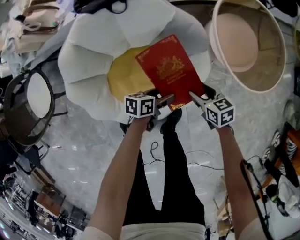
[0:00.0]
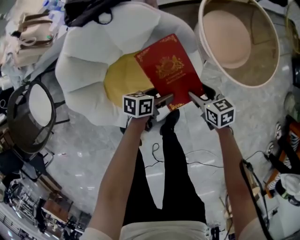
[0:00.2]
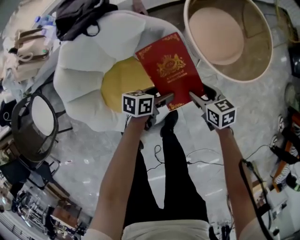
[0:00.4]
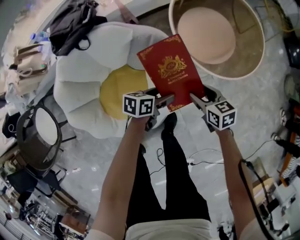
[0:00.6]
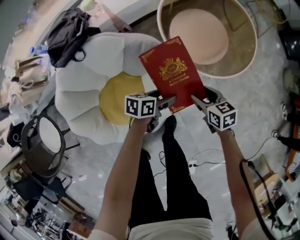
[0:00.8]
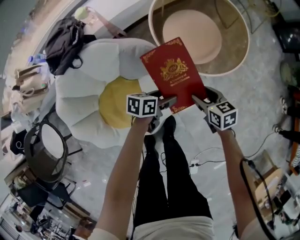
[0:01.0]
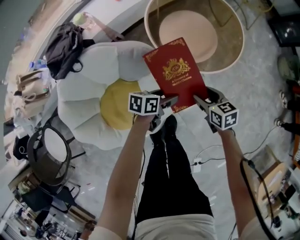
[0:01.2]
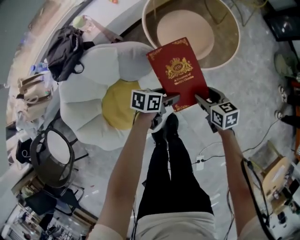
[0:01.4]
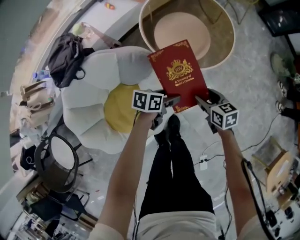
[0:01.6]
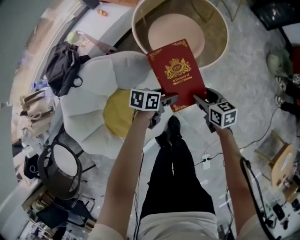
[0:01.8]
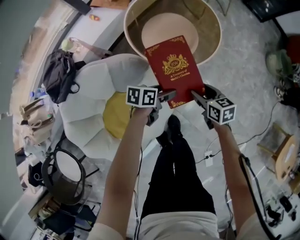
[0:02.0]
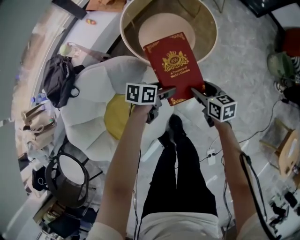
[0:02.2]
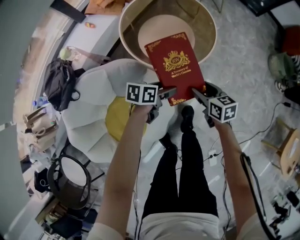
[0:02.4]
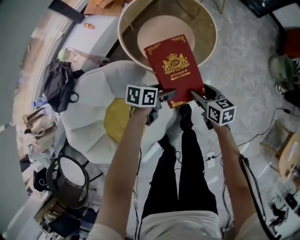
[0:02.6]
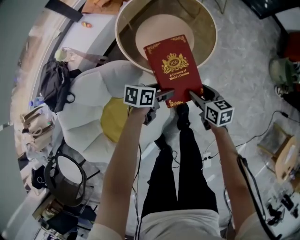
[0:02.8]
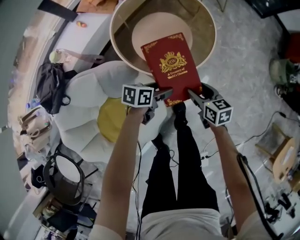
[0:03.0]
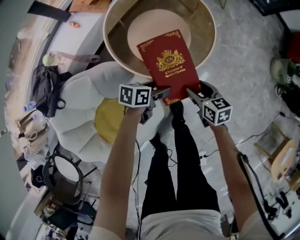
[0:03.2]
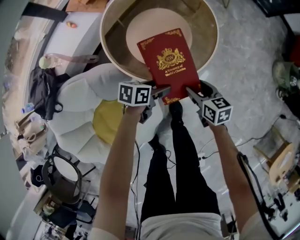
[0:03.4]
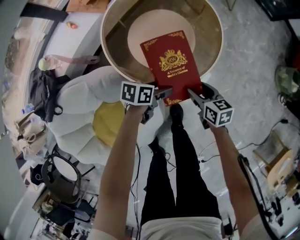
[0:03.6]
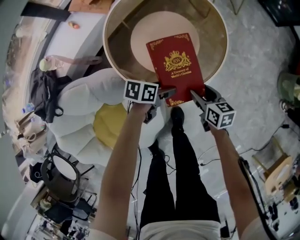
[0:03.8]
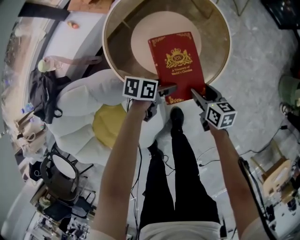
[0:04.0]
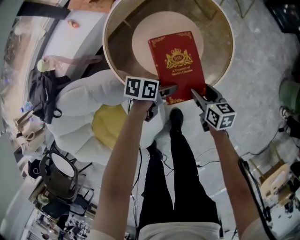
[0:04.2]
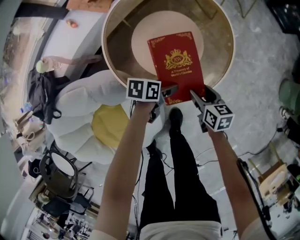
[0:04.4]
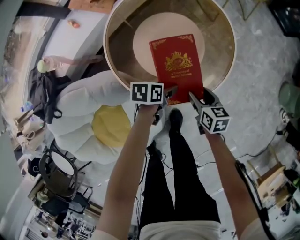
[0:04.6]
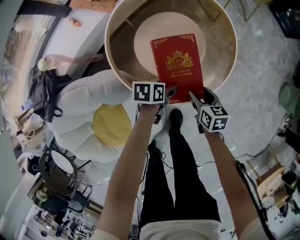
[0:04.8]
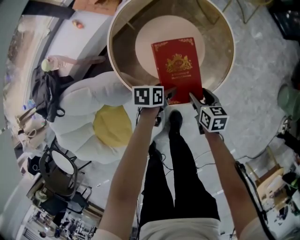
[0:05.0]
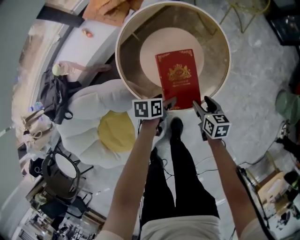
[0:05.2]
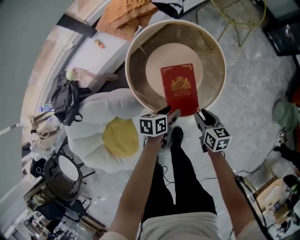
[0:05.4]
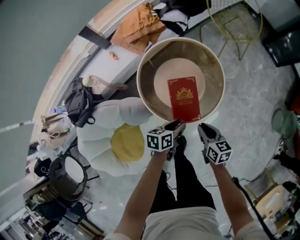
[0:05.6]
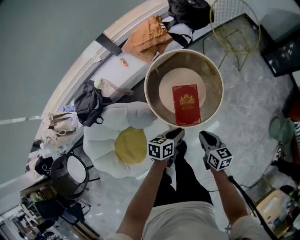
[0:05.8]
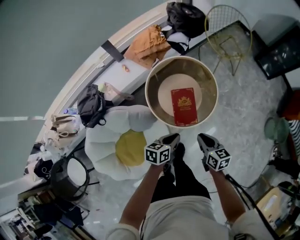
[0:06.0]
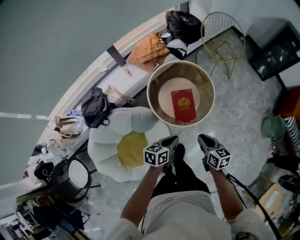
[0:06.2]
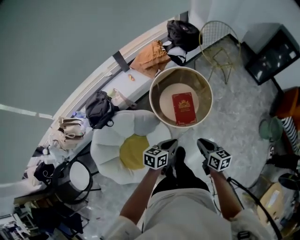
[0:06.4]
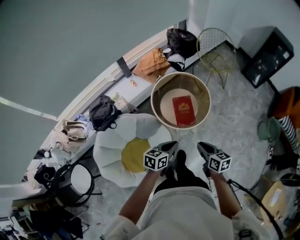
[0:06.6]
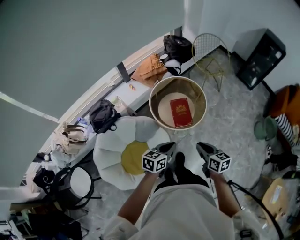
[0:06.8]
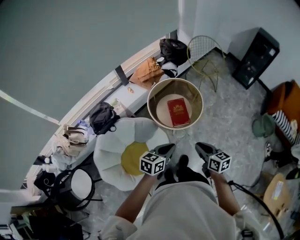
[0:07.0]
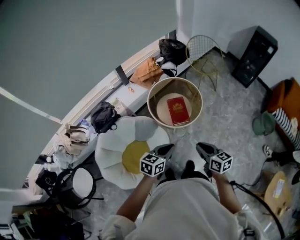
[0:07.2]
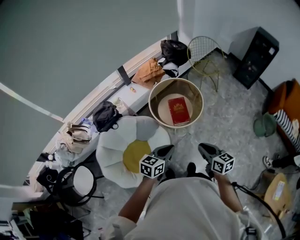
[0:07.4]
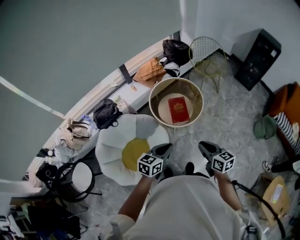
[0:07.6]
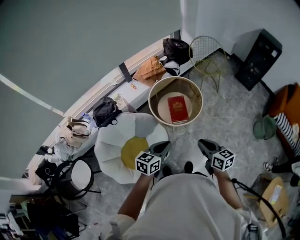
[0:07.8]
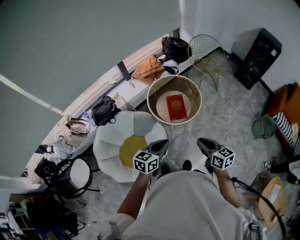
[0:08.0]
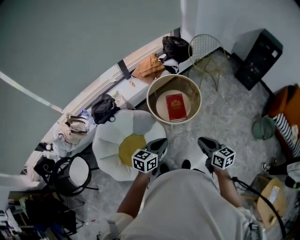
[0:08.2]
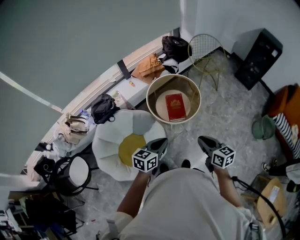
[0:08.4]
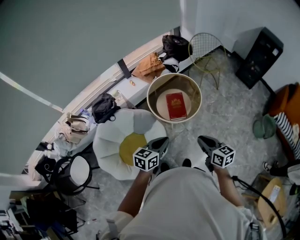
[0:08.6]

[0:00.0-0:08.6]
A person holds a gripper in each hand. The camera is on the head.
0:00.0 to 0:01.4: The right gripper changes place by some 25 cm, and rotates some 30 degrees; the left gripper moves about 25 cm, and swivels roughly 30 degrees.
0:01.4 to 0:02.8: The left gripper travels forward by approximately 10 cm; the right gripper heads forward, covering some 5 cm.
0:02.8 to 0:04.4: Both grippers travel together forward and downward, roughly 20 cm.
0:04.4 to 0:05.8: Both grippers travel together upward, some 30 cm. The left gripper swivels roughly 20 degrees, and closes its fingers; the right gripper closes up.
0:05.8 to 0:07.2: The right gripper is displaced backward and upward by approximately 35 cm, while the left gripper heads upward and backward, covering some 35 cm, and turns by some 30 degrees.
0:07.2 to 0:08.6: The right gripper travels to the right by roughly 5 cm.

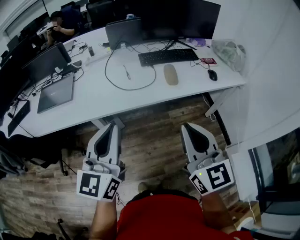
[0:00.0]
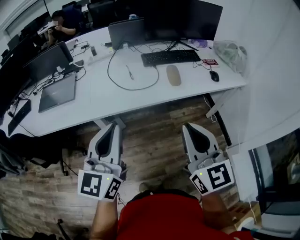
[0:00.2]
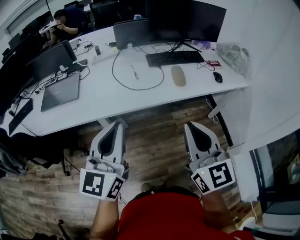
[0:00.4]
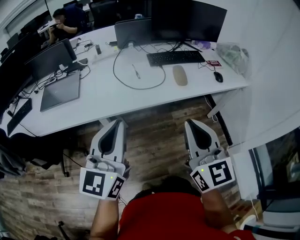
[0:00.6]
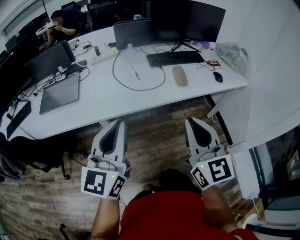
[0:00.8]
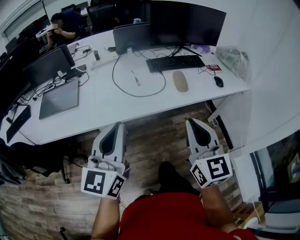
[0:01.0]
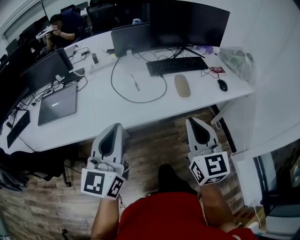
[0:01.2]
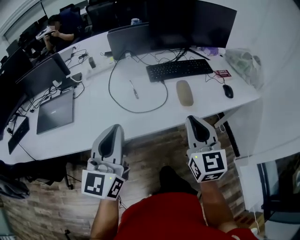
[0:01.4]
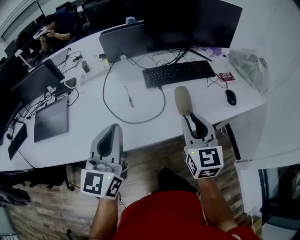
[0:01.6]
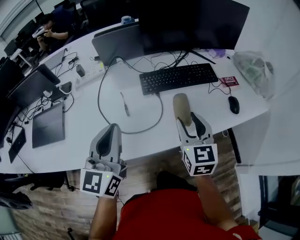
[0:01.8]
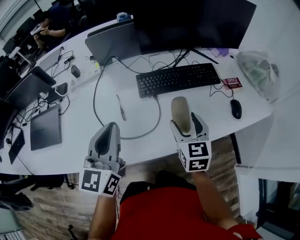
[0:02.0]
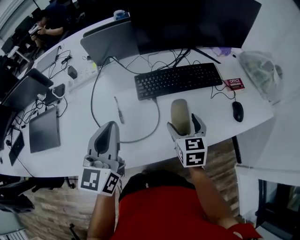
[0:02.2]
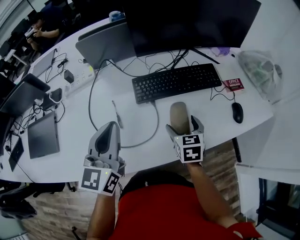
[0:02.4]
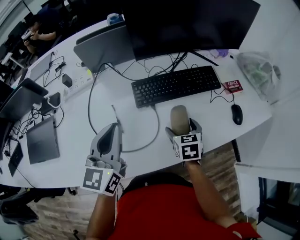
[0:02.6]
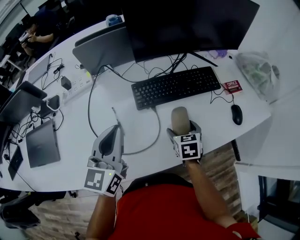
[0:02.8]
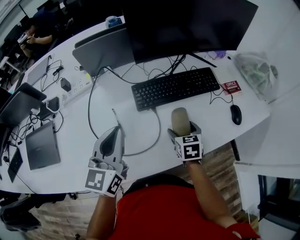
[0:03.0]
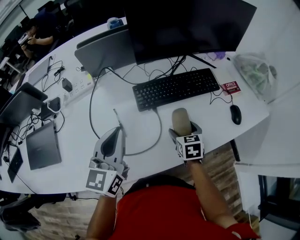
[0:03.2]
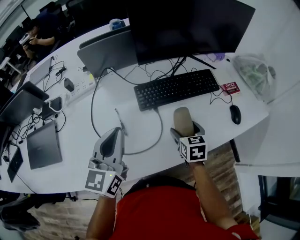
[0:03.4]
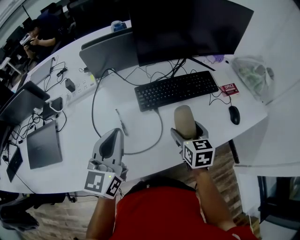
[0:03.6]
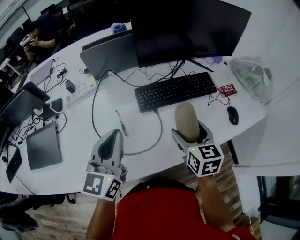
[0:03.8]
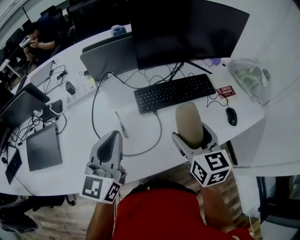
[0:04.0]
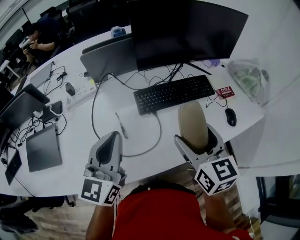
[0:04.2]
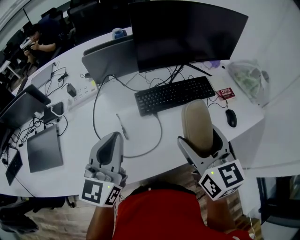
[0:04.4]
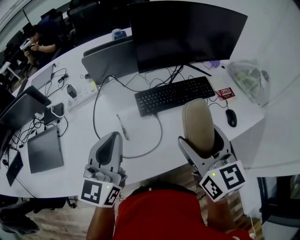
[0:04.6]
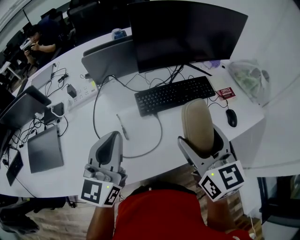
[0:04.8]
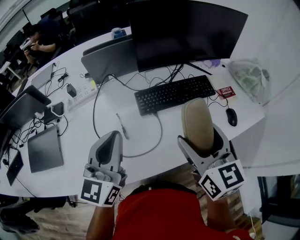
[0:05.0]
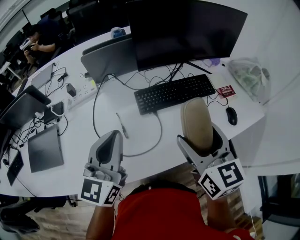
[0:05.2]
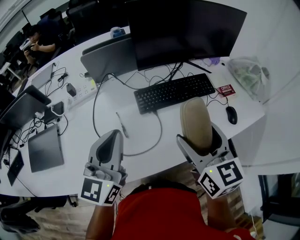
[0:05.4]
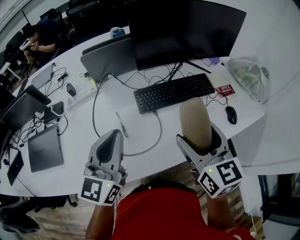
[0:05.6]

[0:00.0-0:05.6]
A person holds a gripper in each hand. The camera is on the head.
0:00.0 to 0:01.4: The grippers both shift forward by some 20 cm.
0:01.4 to 0:02.8: The right gripper goes approximately 35 cm forward and downward, points its fingers some 40 degrees further downward, and opens. The left gripper shifts some 30 cm forward.
0:02.8 to 0:04.2: The right gripper travels upward by approximately 25 cm, and angles its fingers upward, by roughly 30 degrees; the left gripper moves upward, some 5 cm.
0:04.2 to 0:05.6: The grippers stay close to where they were, moving slightly.

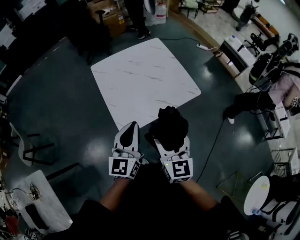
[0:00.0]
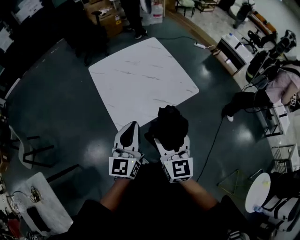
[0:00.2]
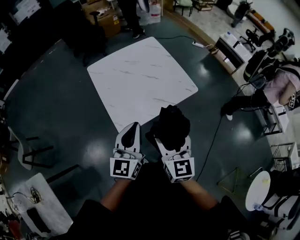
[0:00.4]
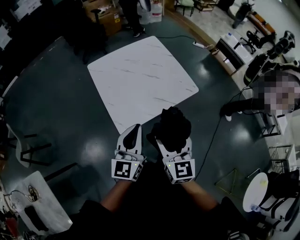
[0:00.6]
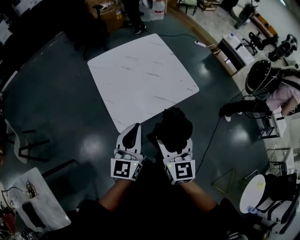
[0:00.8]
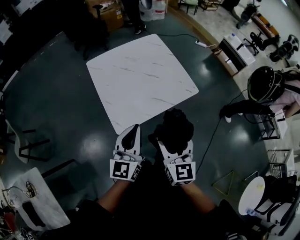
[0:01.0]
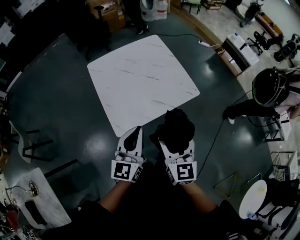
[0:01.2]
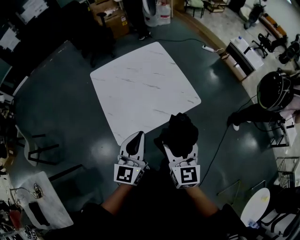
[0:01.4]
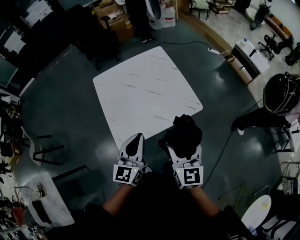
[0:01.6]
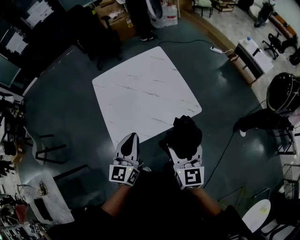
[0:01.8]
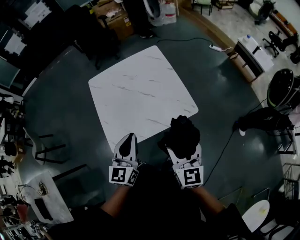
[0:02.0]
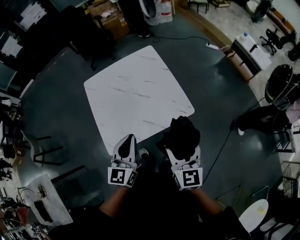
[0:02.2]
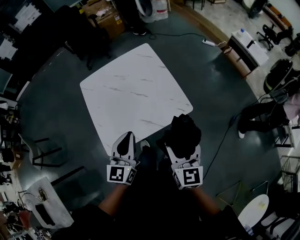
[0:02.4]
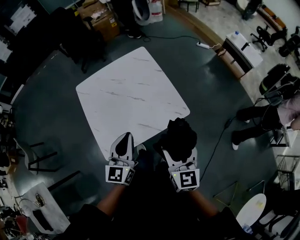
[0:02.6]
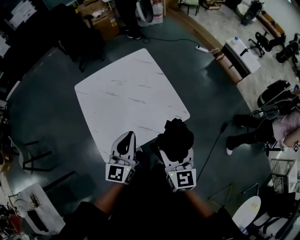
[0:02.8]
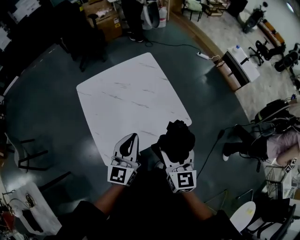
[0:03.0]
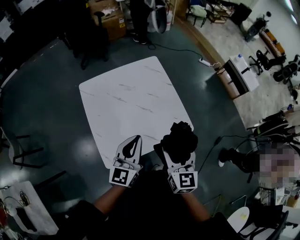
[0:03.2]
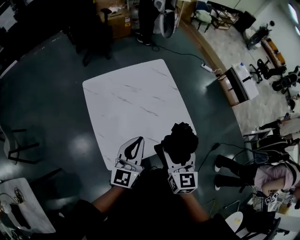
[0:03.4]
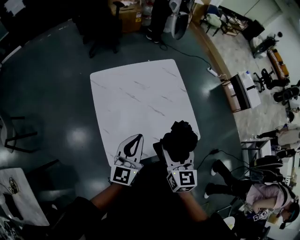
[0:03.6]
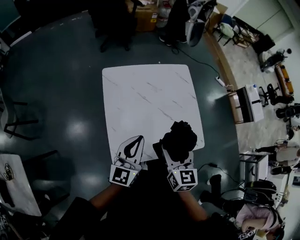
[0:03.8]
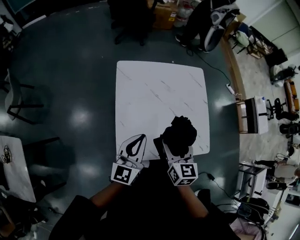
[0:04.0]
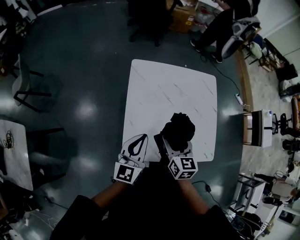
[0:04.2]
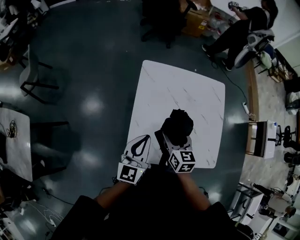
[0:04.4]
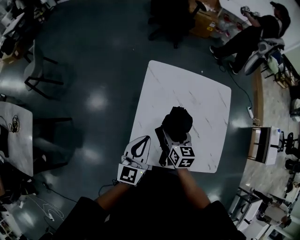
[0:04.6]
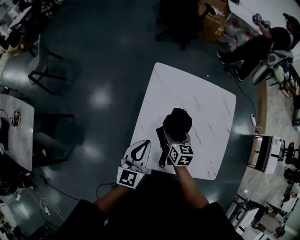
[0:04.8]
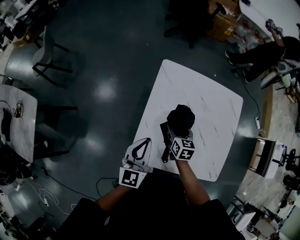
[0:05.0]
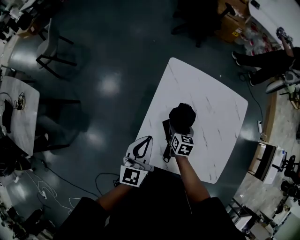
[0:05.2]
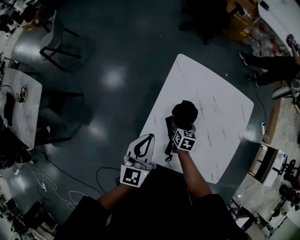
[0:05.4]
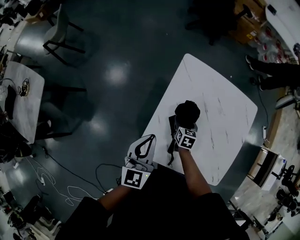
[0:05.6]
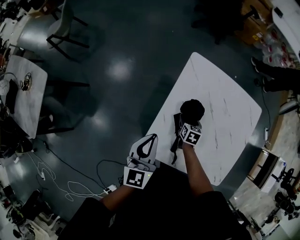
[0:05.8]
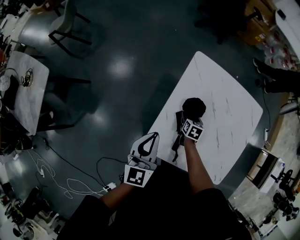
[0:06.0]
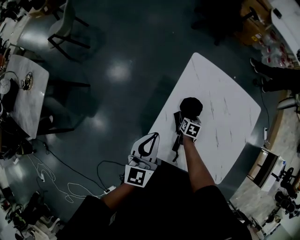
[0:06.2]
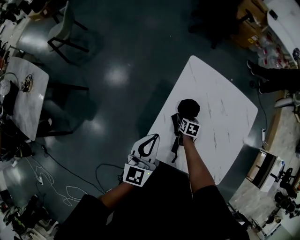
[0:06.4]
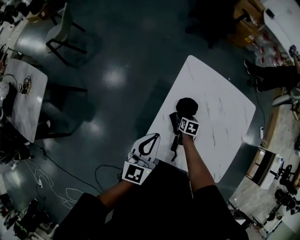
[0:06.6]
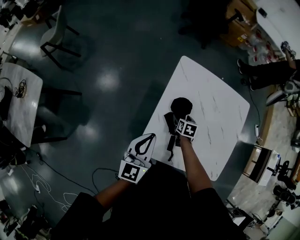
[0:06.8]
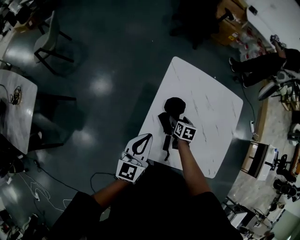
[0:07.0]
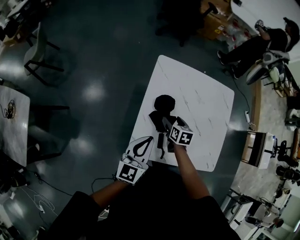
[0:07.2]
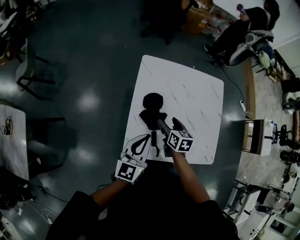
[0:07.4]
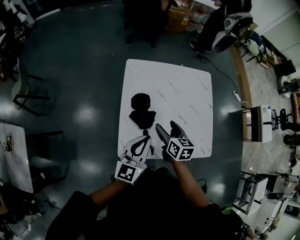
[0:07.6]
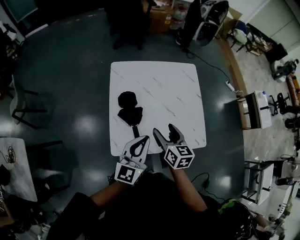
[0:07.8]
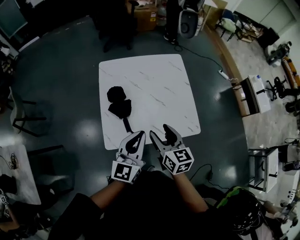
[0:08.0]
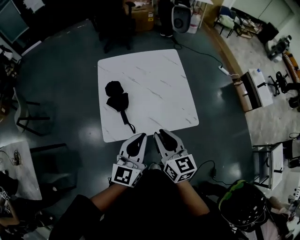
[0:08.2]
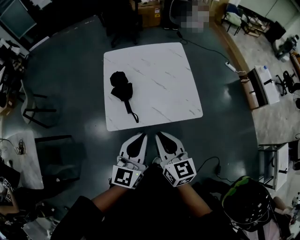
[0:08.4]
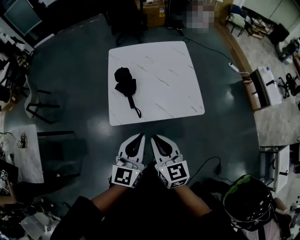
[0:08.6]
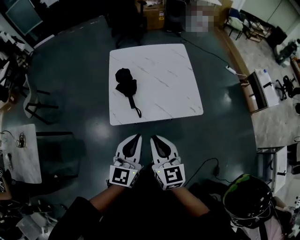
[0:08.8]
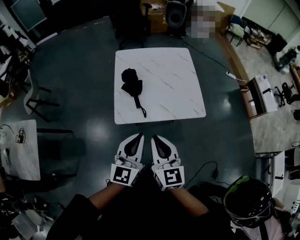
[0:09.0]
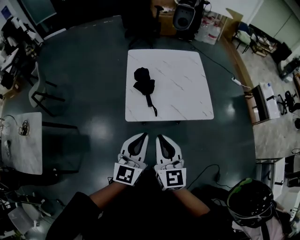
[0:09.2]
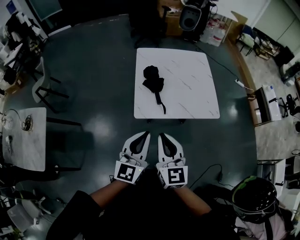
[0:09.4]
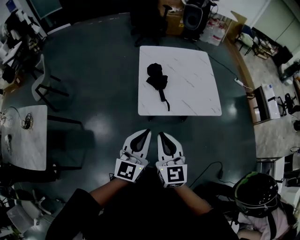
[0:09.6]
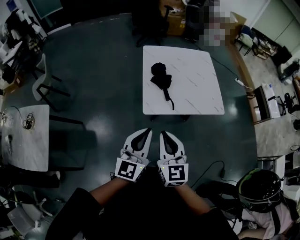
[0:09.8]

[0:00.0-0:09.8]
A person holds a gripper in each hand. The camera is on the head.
0:00.0 to 0:01.4: The right gripper is displaced to the right and forward by some 10 cm. The left gripper travels to the right by about 10 cm.
0:01.4 to 0:02.8: The grippers both shift forward and to the right by about 15 cm.
0:02.8 to 0:04.2: The right gripper moves about 35 cm, and swivels roughly 30 degrees. The left gripper ends up roughly 25 cm from where it was, and swivels some 20 degrees.
0:04.2 to 0:05.6: The right gripper is displaced downward and forward by approximately 30 cm, and swivels some 30 degrees, while the left gripper heads to the left, covering about 10 cm, and swivels roughly 30 degrees.
0:05.6 to 0:07.0: The grippers make only small movements.
0:07.0 to 0:08.4: The right gripper heads backward, upward and to the right, covering approximately 50 cm, angles its fingers upward, by roughly 40 degrees, and closes its fingers, while the left gripper goes roughly 35 cm to the right and backward, and changes its angle by approximately 30 degrees.
0:08.4 to 0:09.8: Both grippers travel together to the left and backward, approximately 30 cm.
